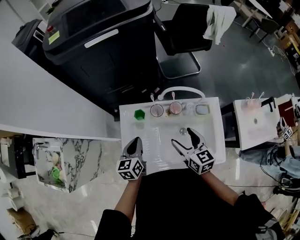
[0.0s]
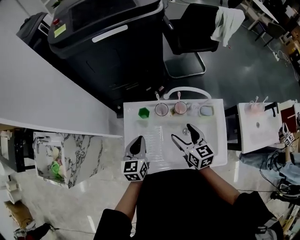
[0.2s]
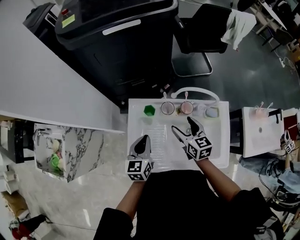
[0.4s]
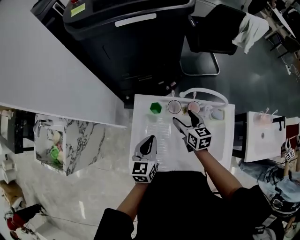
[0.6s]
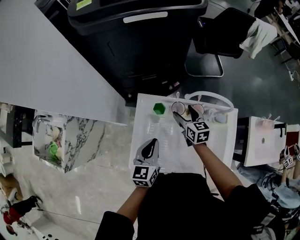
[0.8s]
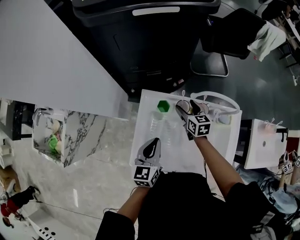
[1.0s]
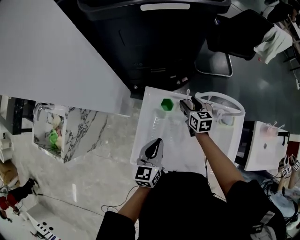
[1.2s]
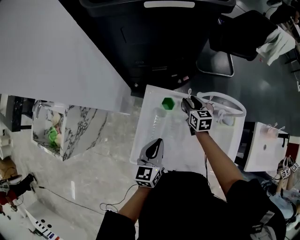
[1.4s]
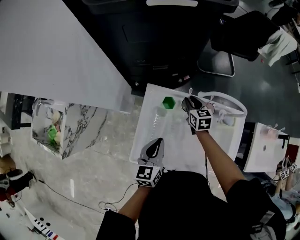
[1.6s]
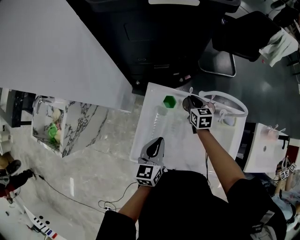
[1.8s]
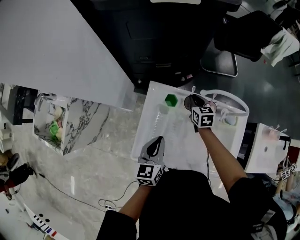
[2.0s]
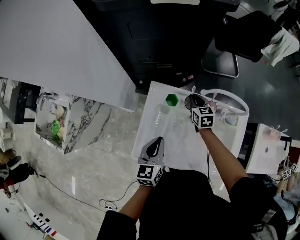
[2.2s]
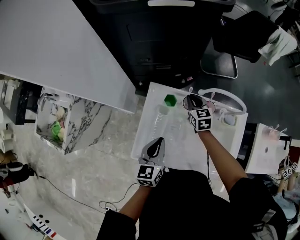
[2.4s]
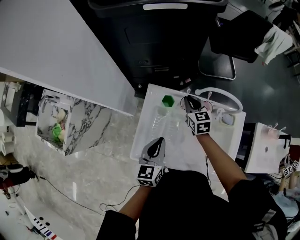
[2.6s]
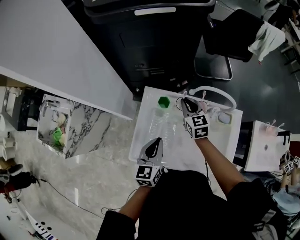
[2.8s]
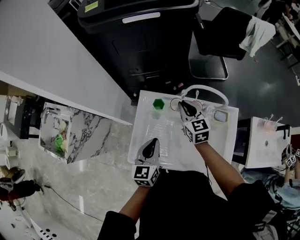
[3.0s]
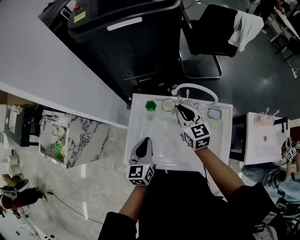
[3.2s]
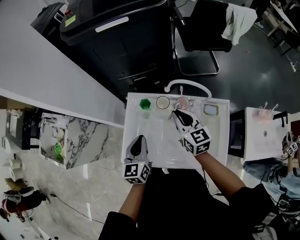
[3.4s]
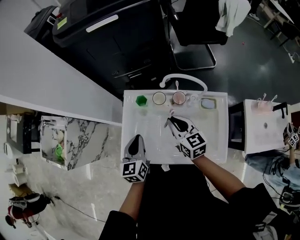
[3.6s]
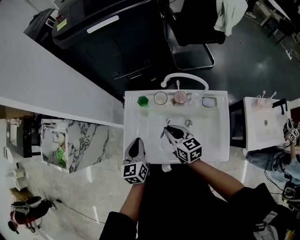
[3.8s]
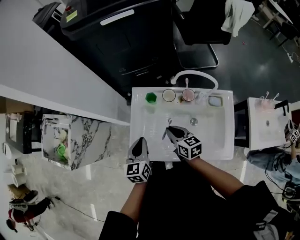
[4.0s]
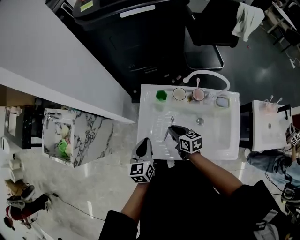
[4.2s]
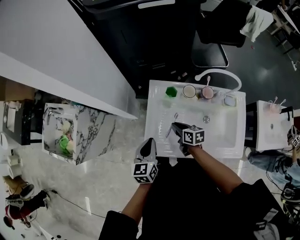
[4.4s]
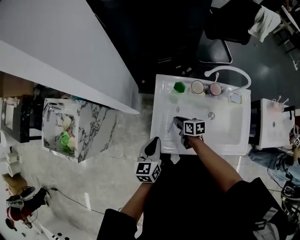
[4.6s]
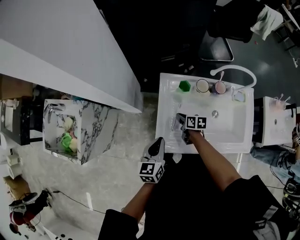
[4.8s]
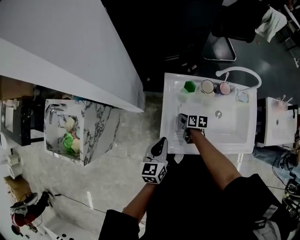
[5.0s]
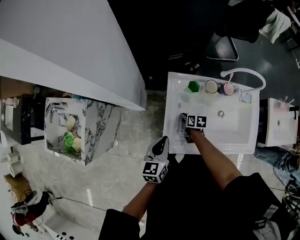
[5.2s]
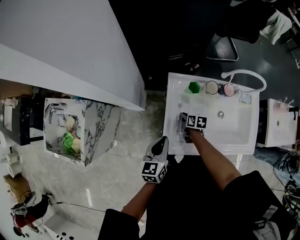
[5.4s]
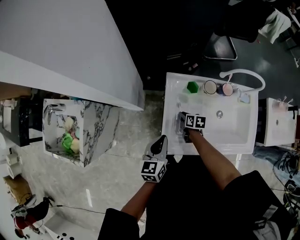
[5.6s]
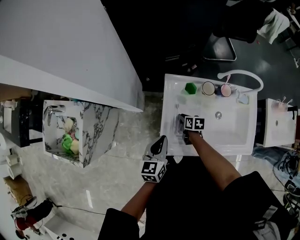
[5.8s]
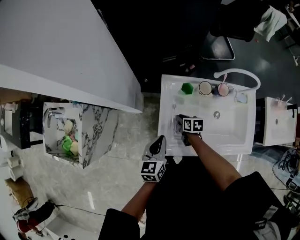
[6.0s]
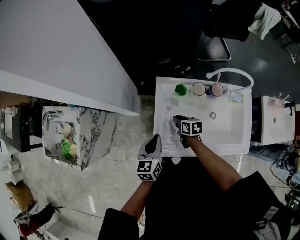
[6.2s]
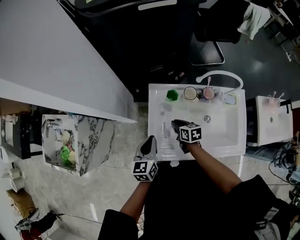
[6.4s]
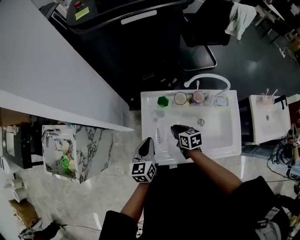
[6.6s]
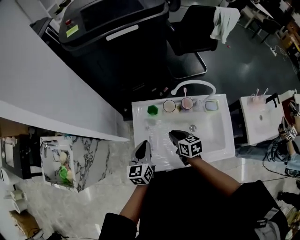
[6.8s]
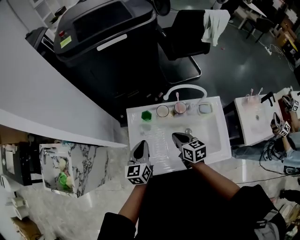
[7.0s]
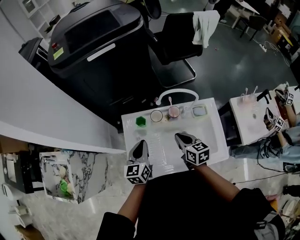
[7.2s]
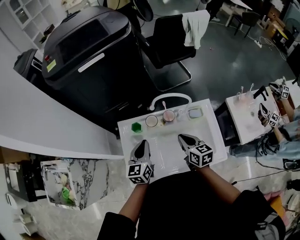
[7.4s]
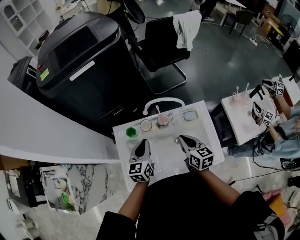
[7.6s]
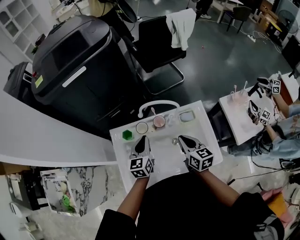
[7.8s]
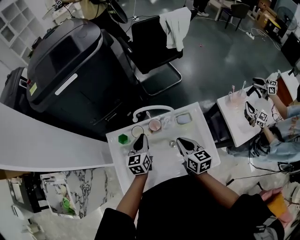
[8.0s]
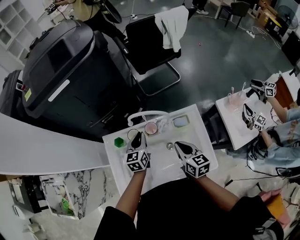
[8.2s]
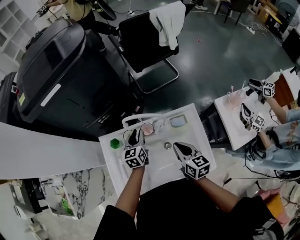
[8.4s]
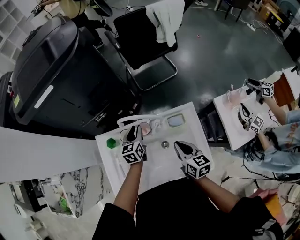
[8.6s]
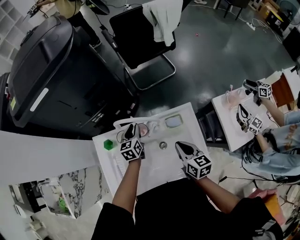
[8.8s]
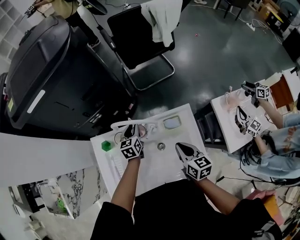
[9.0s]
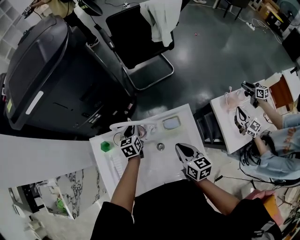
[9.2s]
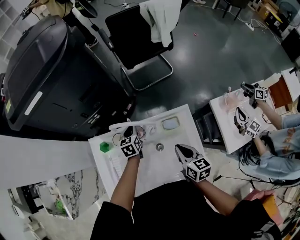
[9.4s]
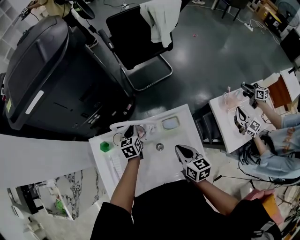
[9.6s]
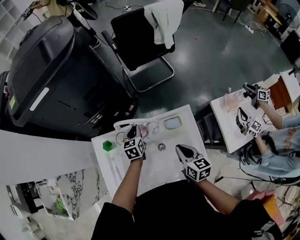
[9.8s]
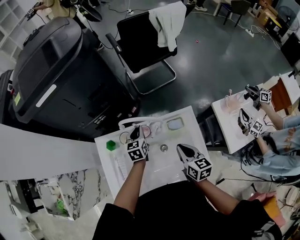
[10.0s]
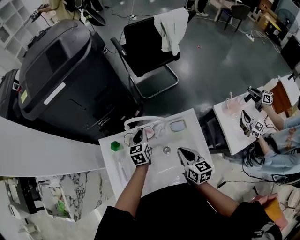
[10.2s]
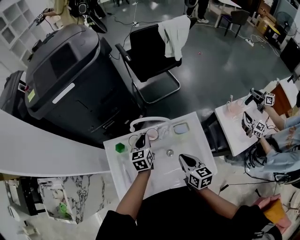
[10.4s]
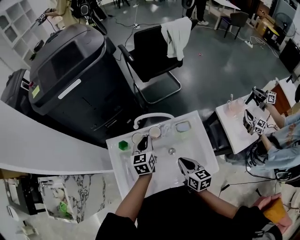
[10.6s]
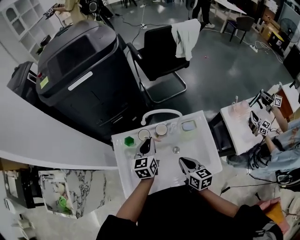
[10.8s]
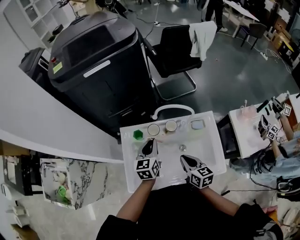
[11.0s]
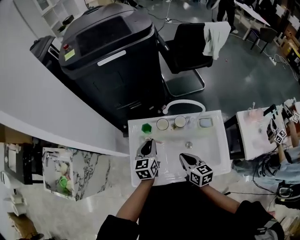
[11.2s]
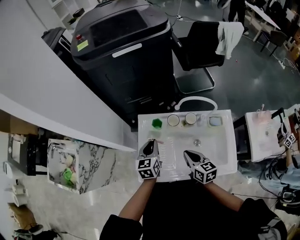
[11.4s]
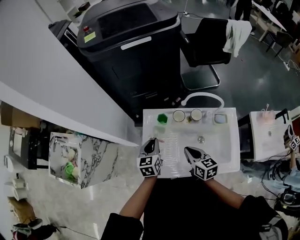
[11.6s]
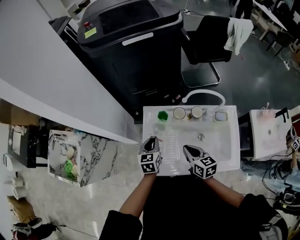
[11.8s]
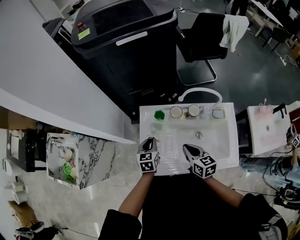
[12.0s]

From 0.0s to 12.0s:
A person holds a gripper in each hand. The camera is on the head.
From 0.0s to 1.6s: The right gripper shifts roughly 25 cm forward and downward, and closes up.
From 1.6s to 3.0s: The left gripper moves approximately 5 cm. The right gripper moves upward and backward, approximately 15 cm.
From 3.0s to 4.4s: The right gripper moves downward, to the left and backward, about 25 cm, and changes its angle by roughly 40 degrees. Meanwhile the left gripper shifts roughly 15 cm to the left and downward.
From 4.4s to 6.0s: The right gripper heads downward and forward, covering some 10 cm. Meanwhile the left gripper moves some 5 cm.
From 6.0s to 7.6s: The right gripper goes about 40 cm to the right and upward, and turns by about 40 degrees; the left gripper goes about 25 cm to the right.
From 7.6s to 9.0s: The left gripper goes about 25 cm forward, downward and to the right. Meanwhile the right gripper goes about 15 cm to the right.
From 9.0s to 10.4s: The left gripper travels upward and backward by roughly 10 cm. Meanwhile the right gripper is displaced to the left and backward by roughly 10 cm.
From 10.4s to 12.0s: The left gripper shifts about 25 cm to the left and backward. The right gripper goes roughly 20 cm to the left.

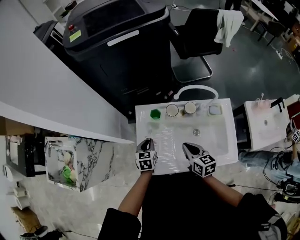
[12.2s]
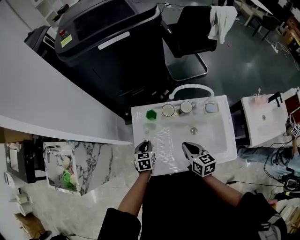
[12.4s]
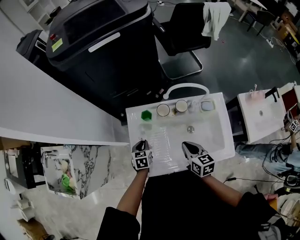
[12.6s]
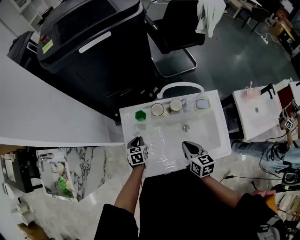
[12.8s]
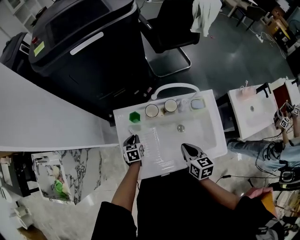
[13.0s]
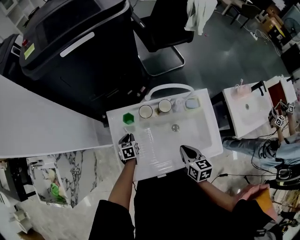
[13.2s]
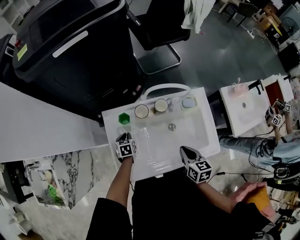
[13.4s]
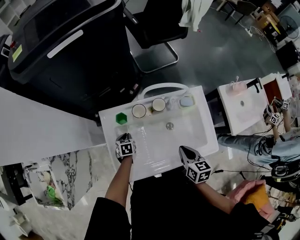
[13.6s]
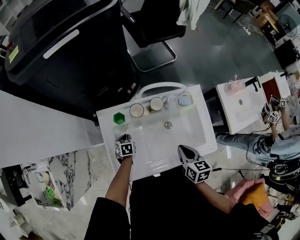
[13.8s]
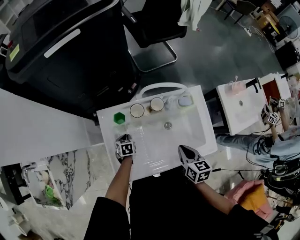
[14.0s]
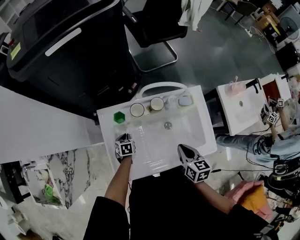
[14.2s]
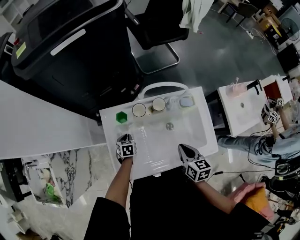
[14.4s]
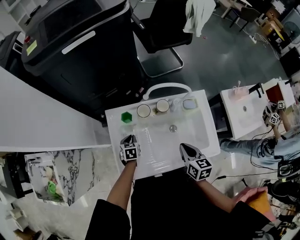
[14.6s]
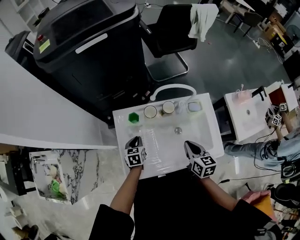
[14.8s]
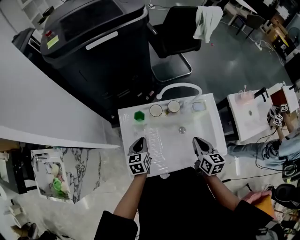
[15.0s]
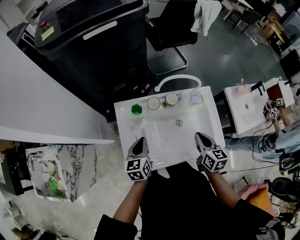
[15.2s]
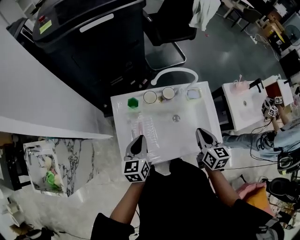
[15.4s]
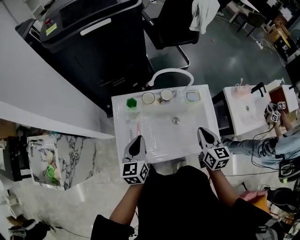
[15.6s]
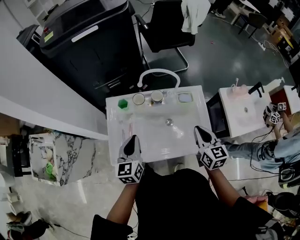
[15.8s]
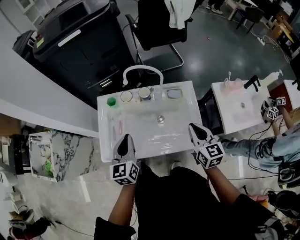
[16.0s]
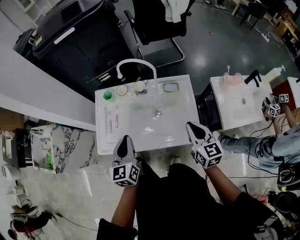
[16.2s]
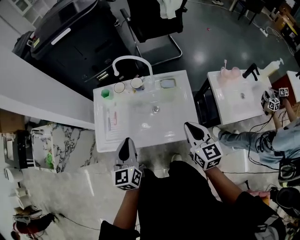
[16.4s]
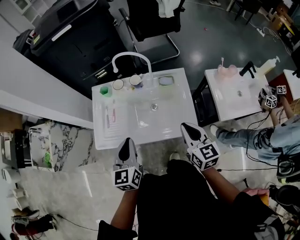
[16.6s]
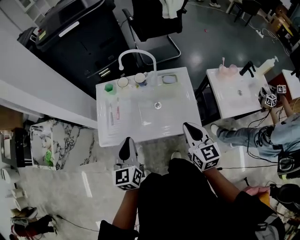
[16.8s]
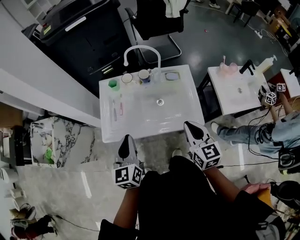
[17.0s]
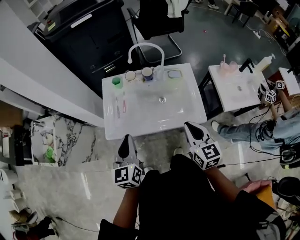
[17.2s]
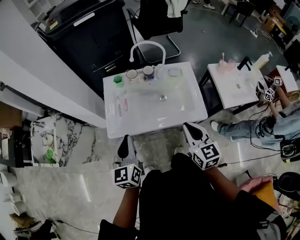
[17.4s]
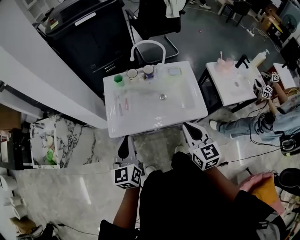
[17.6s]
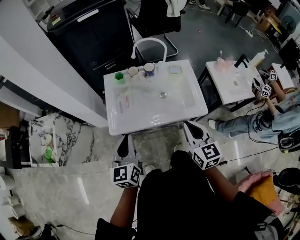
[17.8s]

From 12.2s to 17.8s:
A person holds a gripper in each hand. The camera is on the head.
From 12.2s to 13.6s: The right gripper travels to the right by roughly 10 cm, and swivels roughly 20 degrees. Meanwhile the left gripper is displaced downward and forward by roughly 15 cm.
From 13.6s to 15.0s: The left gripper moves upward, roughly 20 cm, and turns by about 30 degrees. Meanwhile the right gripper goes some 5 cm upward.
From 15.0s to 16.4s: The left gripper shifts approximately 30 cm to the right, backward and upward, and rotates roughly 20 degrees. Meanwhile the right gripper moves to the right and backward, about 20 cm, and turns by roughly 20 degrees.
From 16.4s to 17.8s: The two grippers go roughly 20 cm to the left and backward.

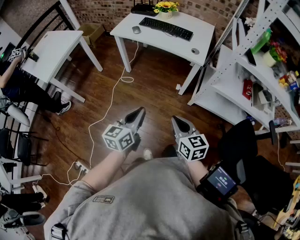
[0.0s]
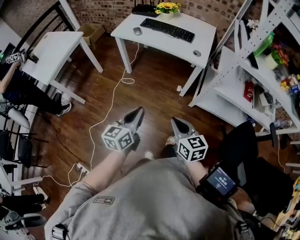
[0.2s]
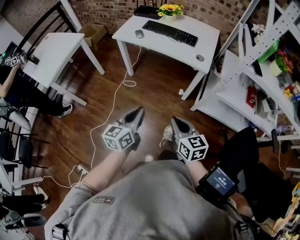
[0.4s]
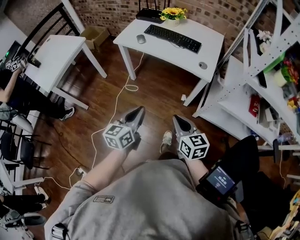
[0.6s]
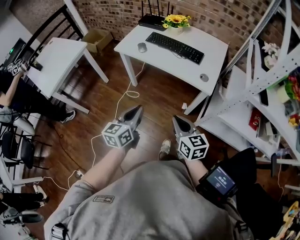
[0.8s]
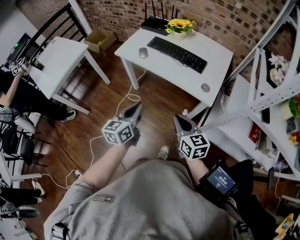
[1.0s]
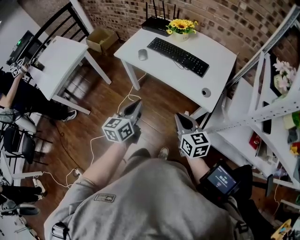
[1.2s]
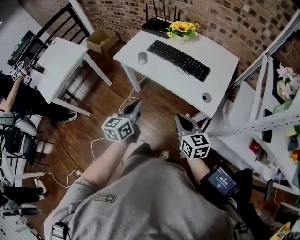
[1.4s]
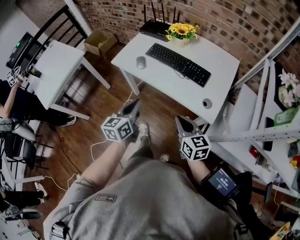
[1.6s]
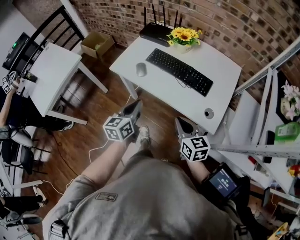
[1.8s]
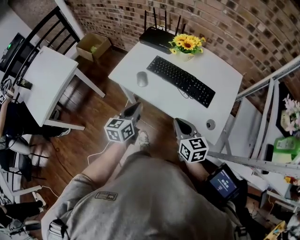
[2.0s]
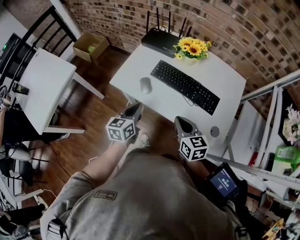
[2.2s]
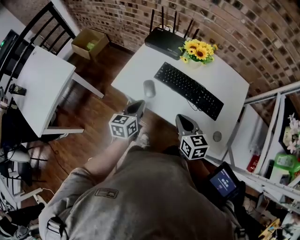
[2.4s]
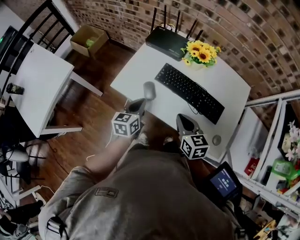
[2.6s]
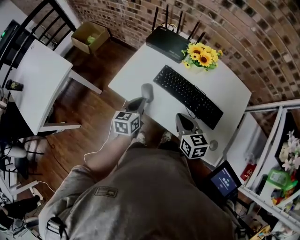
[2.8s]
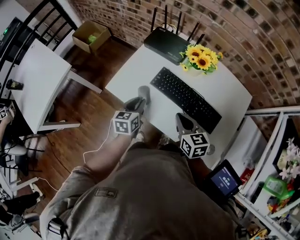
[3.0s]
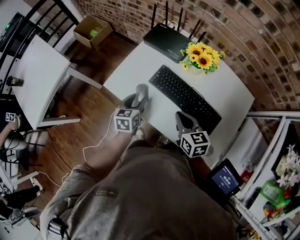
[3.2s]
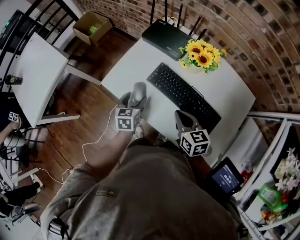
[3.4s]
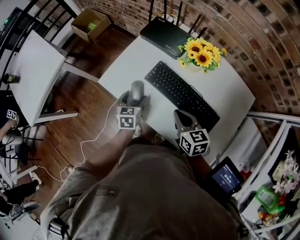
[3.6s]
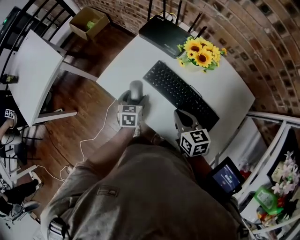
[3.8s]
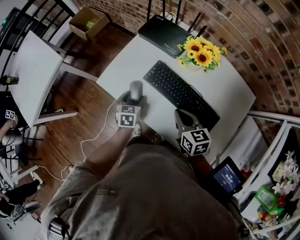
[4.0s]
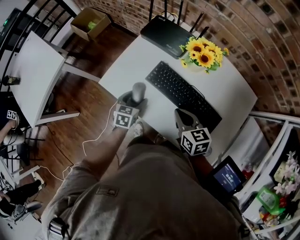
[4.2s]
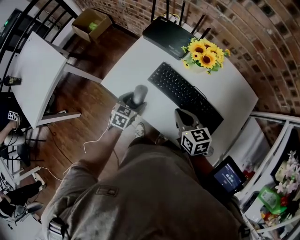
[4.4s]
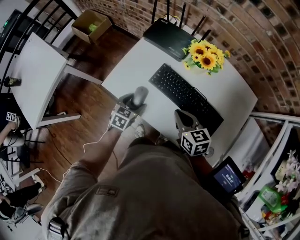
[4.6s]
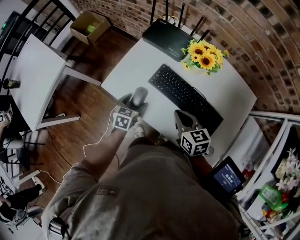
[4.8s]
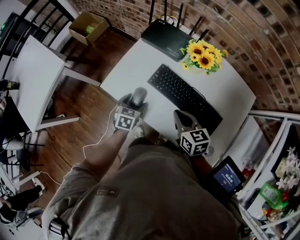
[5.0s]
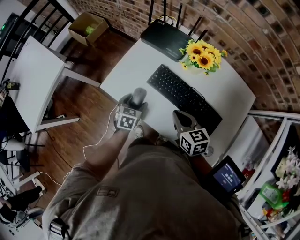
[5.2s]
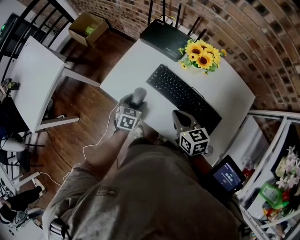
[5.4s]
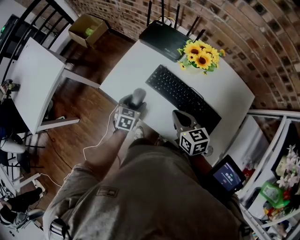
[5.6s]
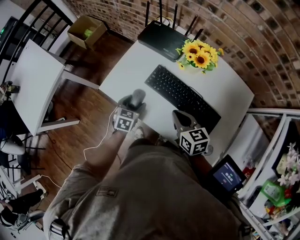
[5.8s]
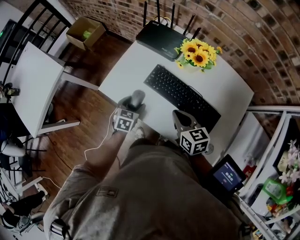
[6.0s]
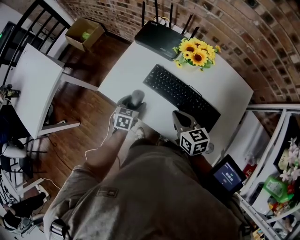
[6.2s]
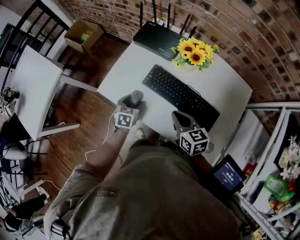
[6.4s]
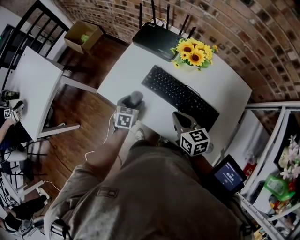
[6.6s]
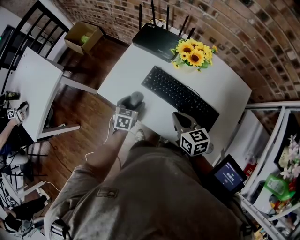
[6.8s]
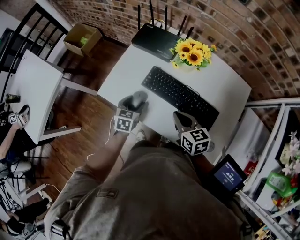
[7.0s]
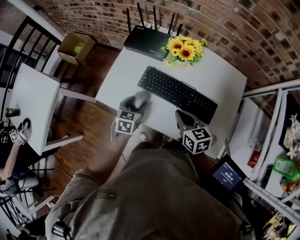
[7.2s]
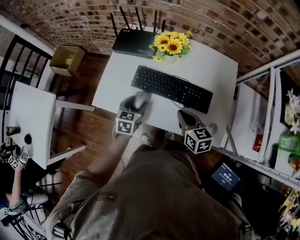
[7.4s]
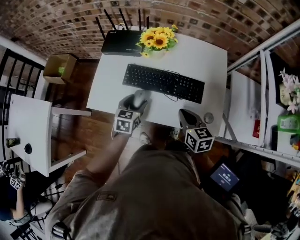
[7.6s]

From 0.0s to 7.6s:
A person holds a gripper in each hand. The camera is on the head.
From 0.0s to 1.6s: The grippers both shift forward by approximately 40 cm.
From 1.6s to 3.0s: The right gripper travels forward by about 30 cm. The left gripper heads forward and downward, covering roughly 30 cm.
From 3.0s to 4.6s: The left gripper goes about 5 cm downward, changes its angle by approximately 30 degrees, and opens up.
From 4.6s to 6.0s: The grippers move only a little.
From 6.0s to 7.6s: The left gripper moves roughly 10 cm, and swivels some 20 degrees. Meanwhile the right gripper moves roughly 10 cm, and turns by approximately 30 degrees.
